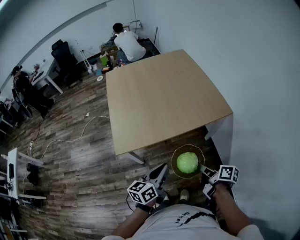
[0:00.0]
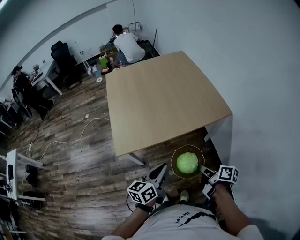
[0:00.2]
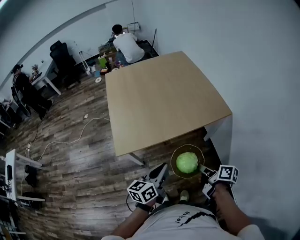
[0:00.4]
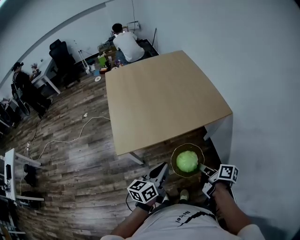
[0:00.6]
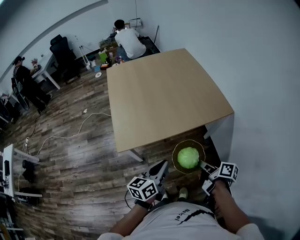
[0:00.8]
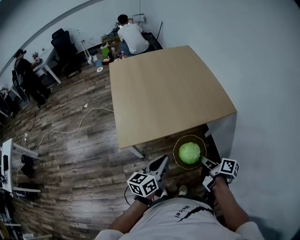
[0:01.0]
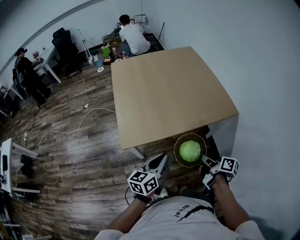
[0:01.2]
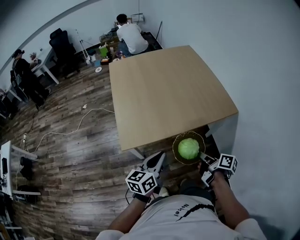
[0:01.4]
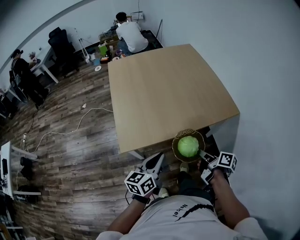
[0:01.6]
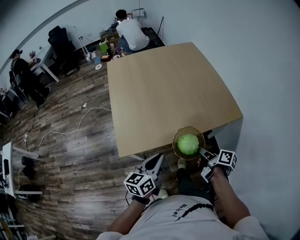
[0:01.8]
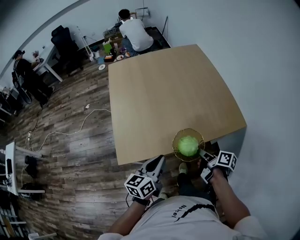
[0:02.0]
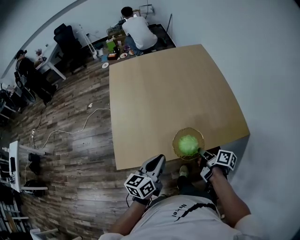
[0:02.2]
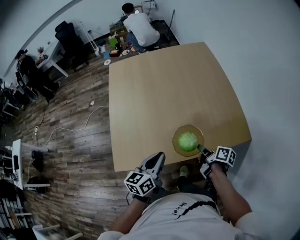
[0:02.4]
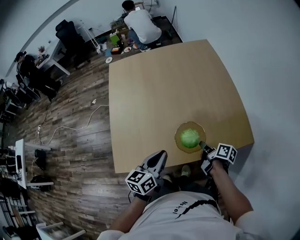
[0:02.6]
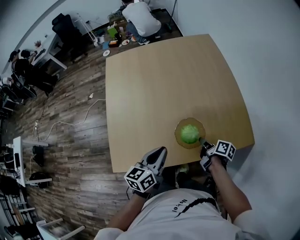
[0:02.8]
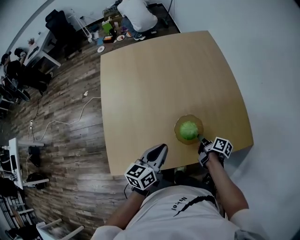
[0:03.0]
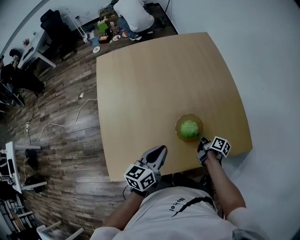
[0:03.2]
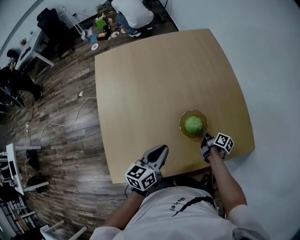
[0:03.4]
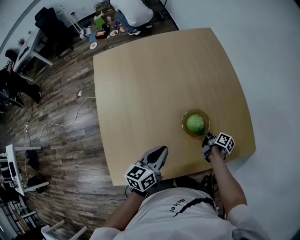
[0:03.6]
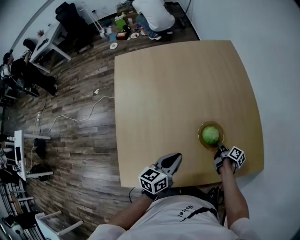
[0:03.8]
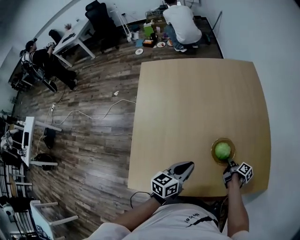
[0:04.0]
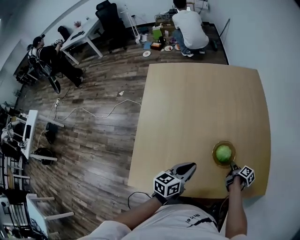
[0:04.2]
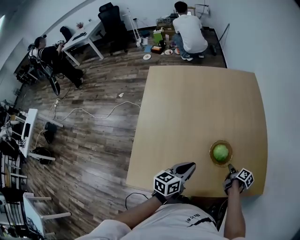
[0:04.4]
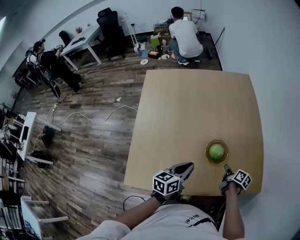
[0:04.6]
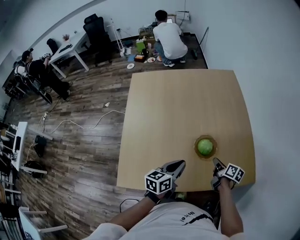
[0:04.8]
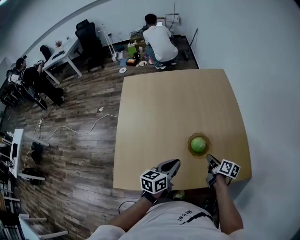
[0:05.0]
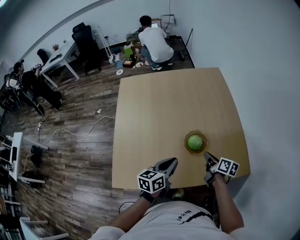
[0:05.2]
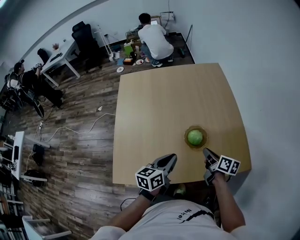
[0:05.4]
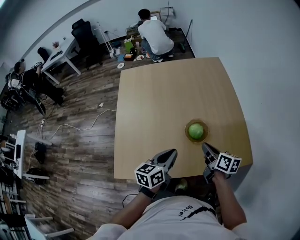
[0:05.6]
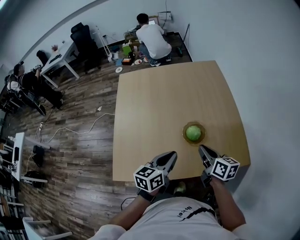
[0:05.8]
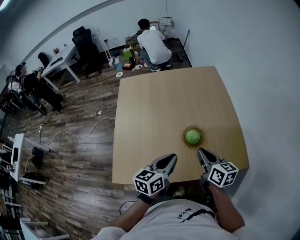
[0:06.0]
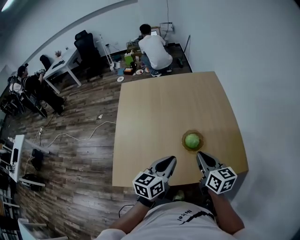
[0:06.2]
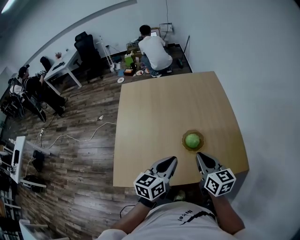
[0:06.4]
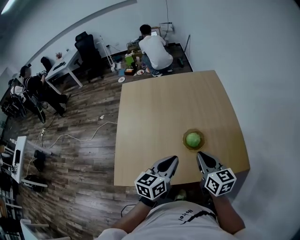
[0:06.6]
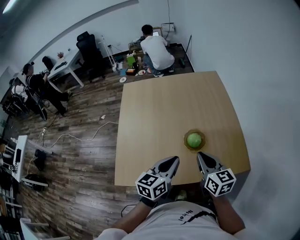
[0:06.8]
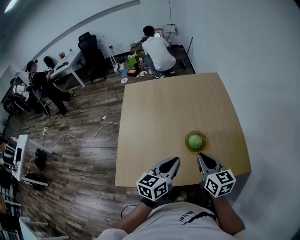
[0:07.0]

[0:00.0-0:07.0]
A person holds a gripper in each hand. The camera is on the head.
0:00.0 to 0:01.4: Both grippers travel together to the left, some 10 cm.
0:01.4 to 0:02.8: Both grippers move forward, roughly 30 cm.
0:02.8 to 0:04.2: The left gripper goes about 10 cm forward, while the right gripper shifts some 15 cm forward, downward and to the right.
0:04.2 to 0:05.6: The left gripper moves backward, upward and to the right, roughly 10 cm. Meanwhile the right gripper travels upward by approximately 25 cm, and swivels some 40 degrees.
0:05.6 to 0:07.0: The left gripper is displaced upward by some 5 cm; the right gripper travels upward by about 10 cm, and swivels roughly 30 degrees.

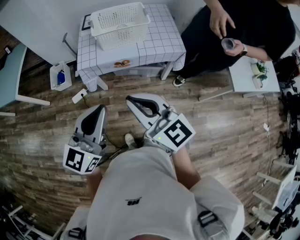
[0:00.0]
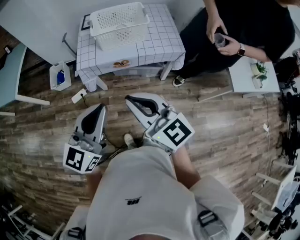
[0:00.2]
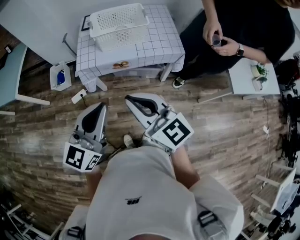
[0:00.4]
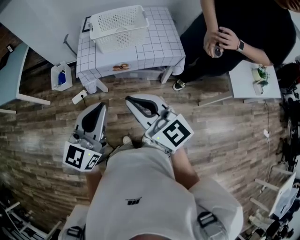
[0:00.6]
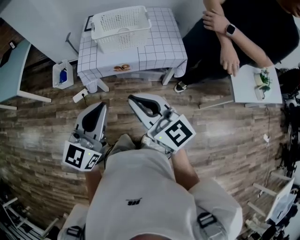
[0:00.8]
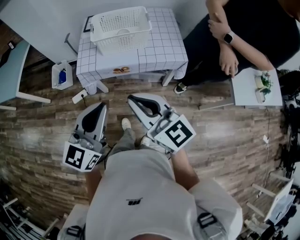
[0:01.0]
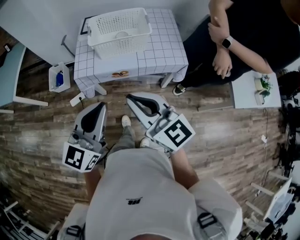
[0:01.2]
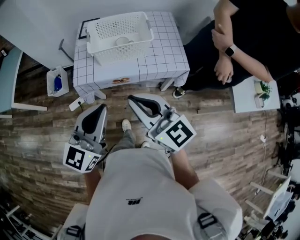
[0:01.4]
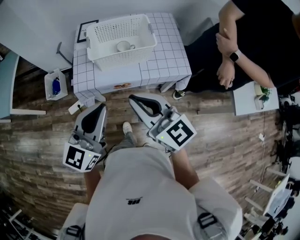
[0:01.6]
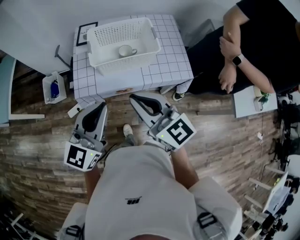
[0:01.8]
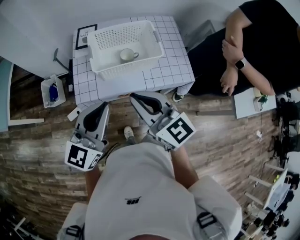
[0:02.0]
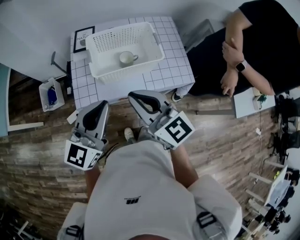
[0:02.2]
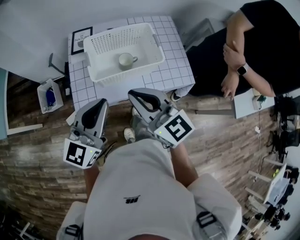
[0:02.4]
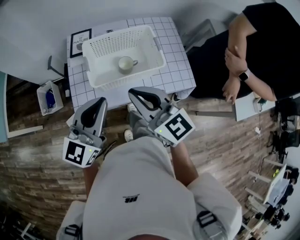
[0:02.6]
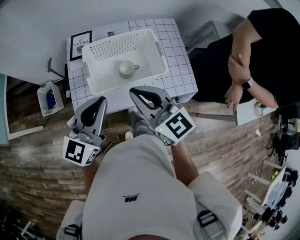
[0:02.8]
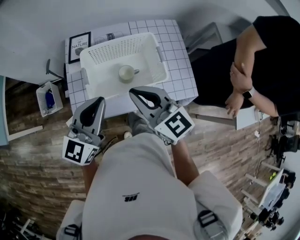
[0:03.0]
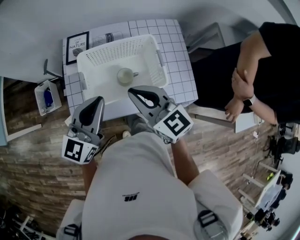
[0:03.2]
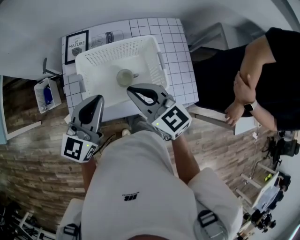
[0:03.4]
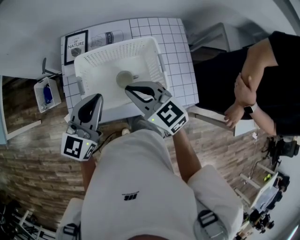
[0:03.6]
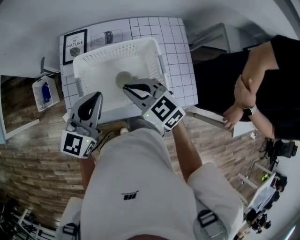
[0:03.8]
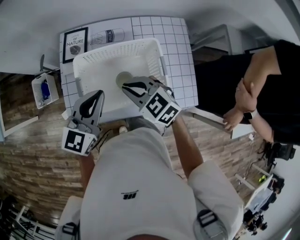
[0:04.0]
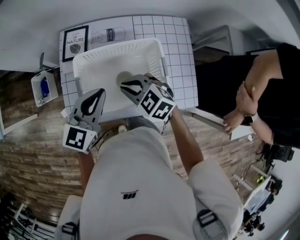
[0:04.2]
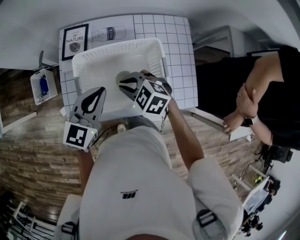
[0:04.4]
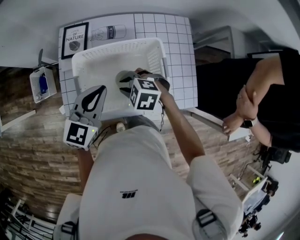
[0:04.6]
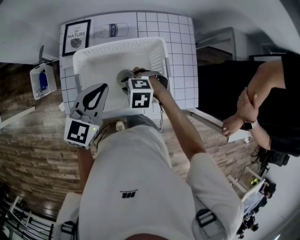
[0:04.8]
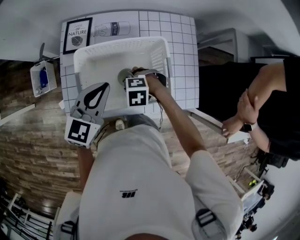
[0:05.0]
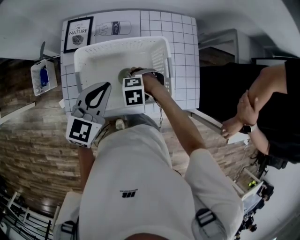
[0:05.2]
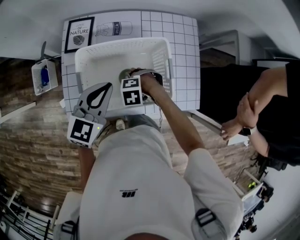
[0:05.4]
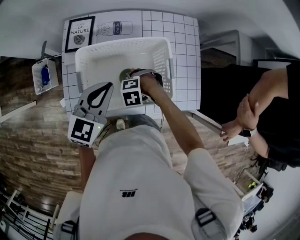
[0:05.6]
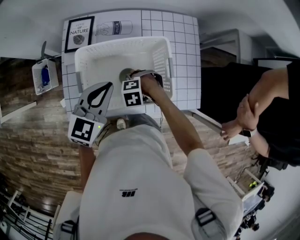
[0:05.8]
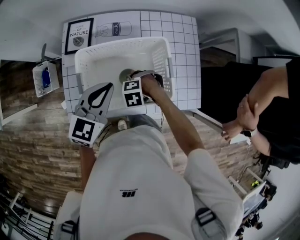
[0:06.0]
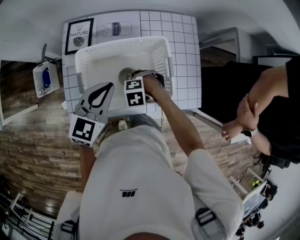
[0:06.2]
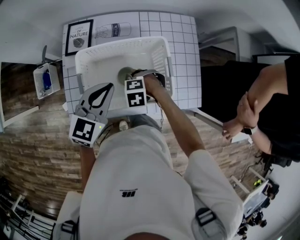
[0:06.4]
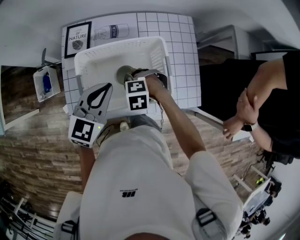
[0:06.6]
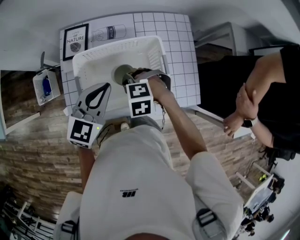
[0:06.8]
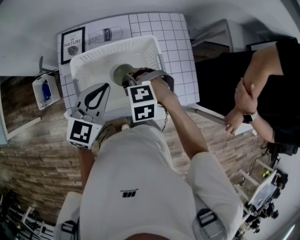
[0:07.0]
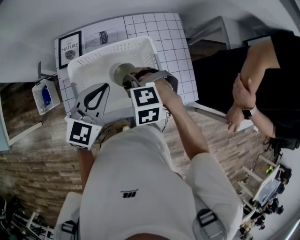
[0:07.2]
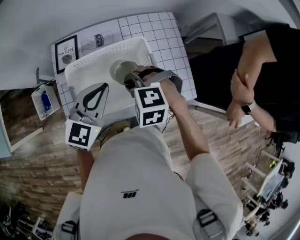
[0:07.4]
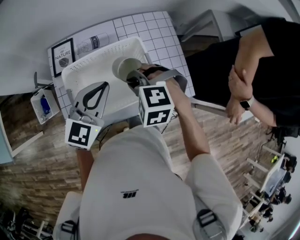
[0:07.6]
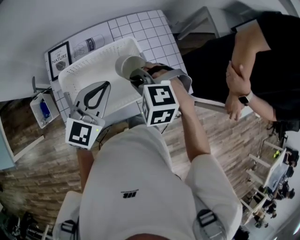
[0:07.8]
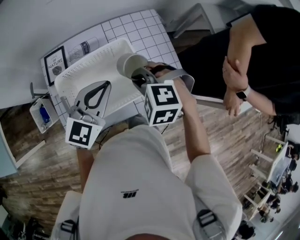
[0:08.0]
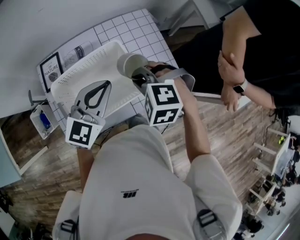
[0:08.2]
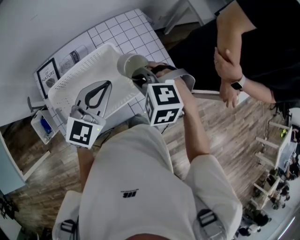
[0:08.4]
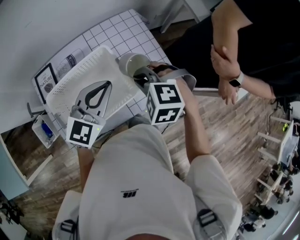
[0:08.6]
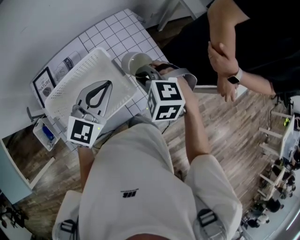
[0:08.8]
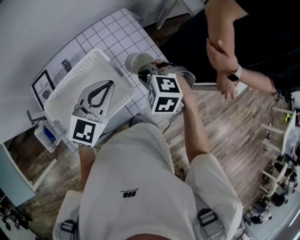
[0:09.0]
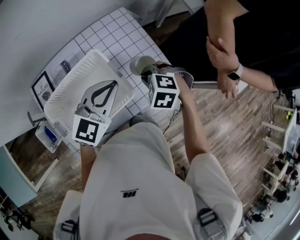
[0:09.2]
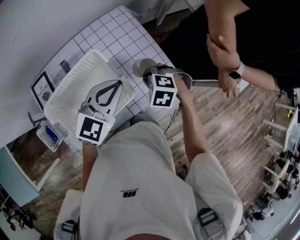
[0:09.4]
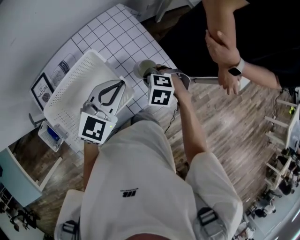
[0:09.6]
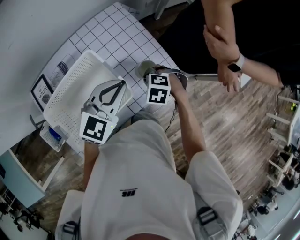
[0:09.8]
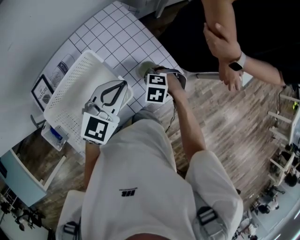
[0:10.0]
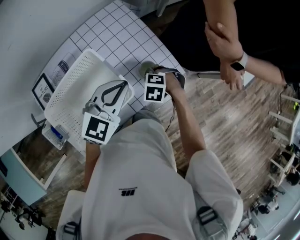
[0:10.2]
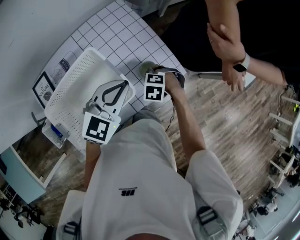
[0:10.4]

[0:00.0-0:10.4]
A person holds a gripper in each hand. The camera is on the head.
0:00.0 to 0:01.4: Both grippers travel together forward, approximately 15 cm.
0:01.4 to 0:03.0: Both grippers travel together forward, roughly 30 cm.
0:03.0 to 0:04.4: The left gripper heads forward and downward, covering approximately 15 cm; the right gripper goes roughly 20 cm downward and forward, and tilts its fingers approximately 40 degrees downward.
0:04.4 to 0:06.0: The right gripper is displaced downward by about 15 cm, and tips its fingers downward by roughly 30 degrees.
0:06.0 to 0:07.4: The left gripper ends up roughly 5 cm from where it was, while the right gripper is displaced upward by some 20 cm, and rotates roughly 30 degrees.
0:07.4 to 0:09.0: Both grippers travel together to the right, approximately 15 cm. The left gripper swivels about 20 degrees. The right gripper turns by about 30 degrees.
0:09.0 to 0:10.4: The left gripper shifts by approximately 5 cm, while the right gripper heads downward, covering some 20 cm, and rotates approximately 20 degrees.

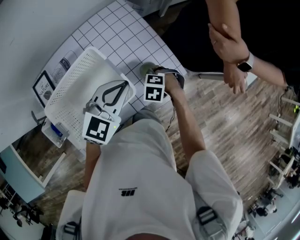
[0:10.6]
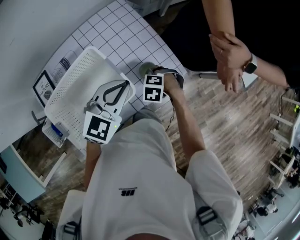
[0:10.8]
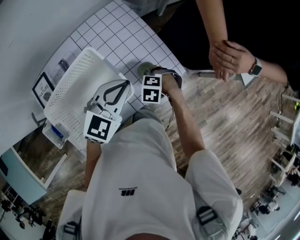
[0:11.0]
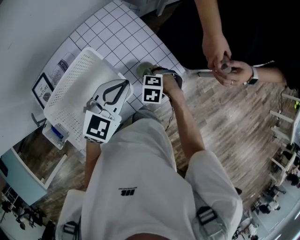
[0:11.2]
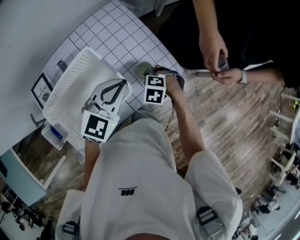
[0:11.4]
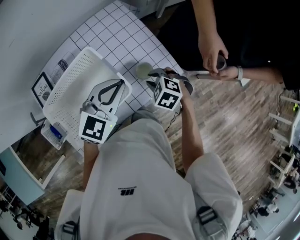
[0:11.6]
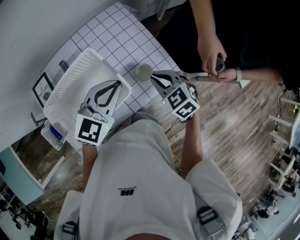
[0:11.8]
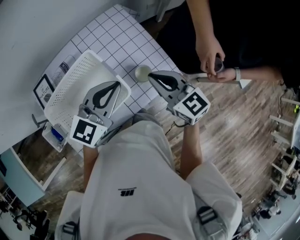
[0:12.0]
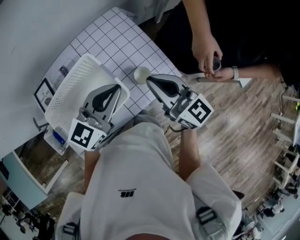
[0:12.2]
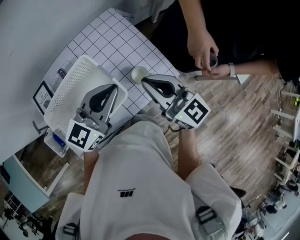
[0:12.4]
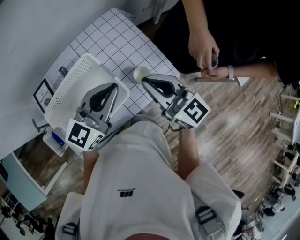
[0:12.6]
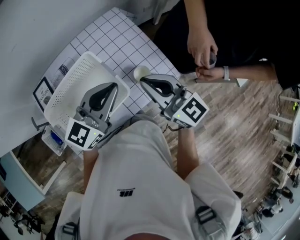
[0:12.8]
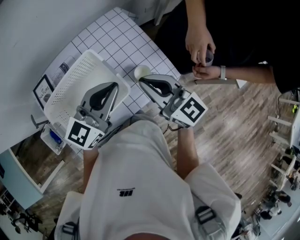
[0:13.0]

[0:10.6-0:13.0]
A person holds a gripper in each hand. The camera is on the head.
0:10.6 to 0:11.8: The right gripper moves upward, roughly 15 cm, and tilts its fingers about 40 degrees upward.
0:11.8 to 0:13.0: The right gripper travels upward by some 15 cm, and tips its fingers upward by about 40 degrees.

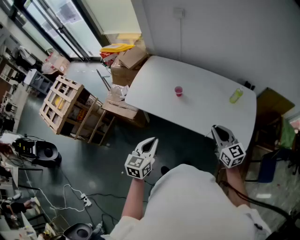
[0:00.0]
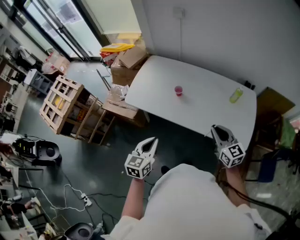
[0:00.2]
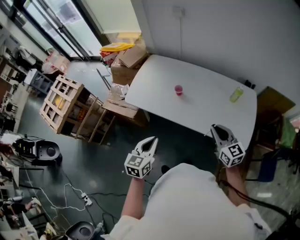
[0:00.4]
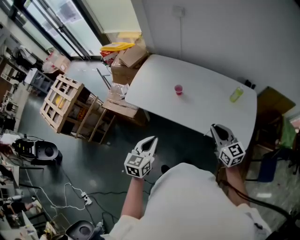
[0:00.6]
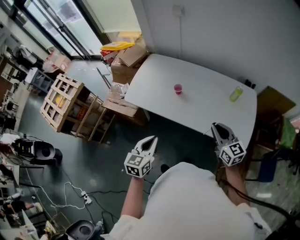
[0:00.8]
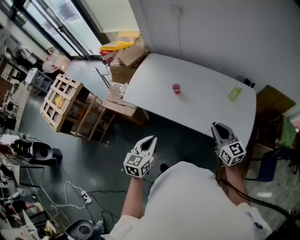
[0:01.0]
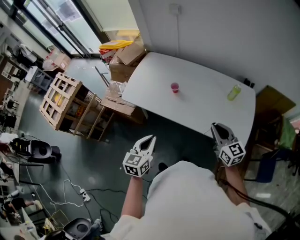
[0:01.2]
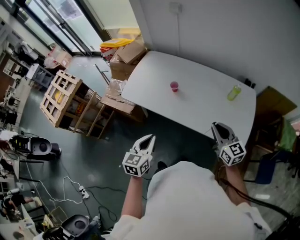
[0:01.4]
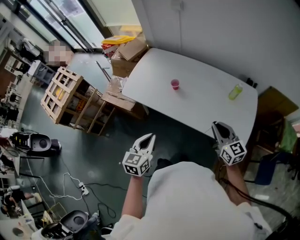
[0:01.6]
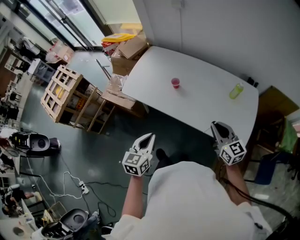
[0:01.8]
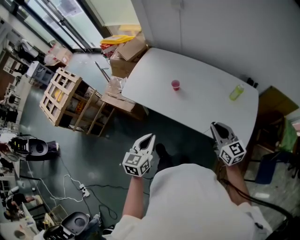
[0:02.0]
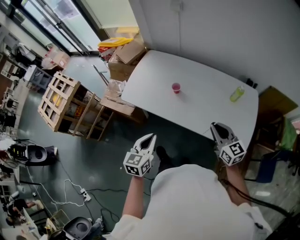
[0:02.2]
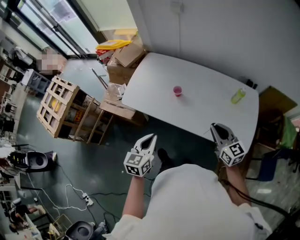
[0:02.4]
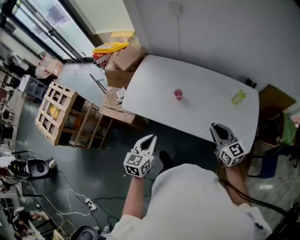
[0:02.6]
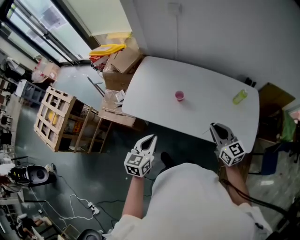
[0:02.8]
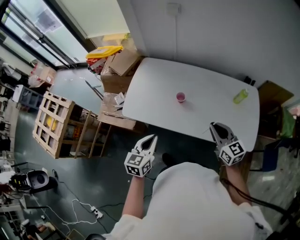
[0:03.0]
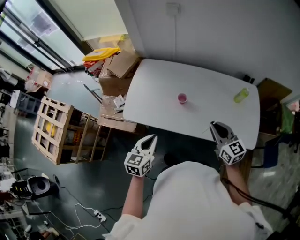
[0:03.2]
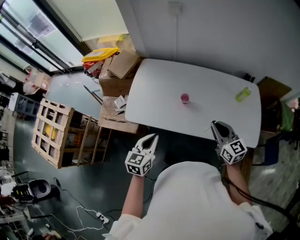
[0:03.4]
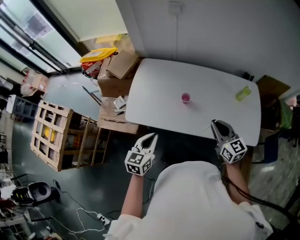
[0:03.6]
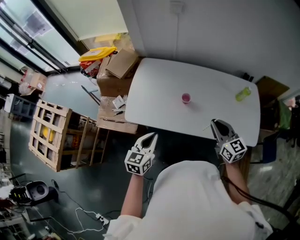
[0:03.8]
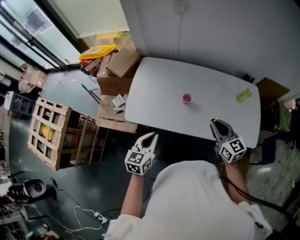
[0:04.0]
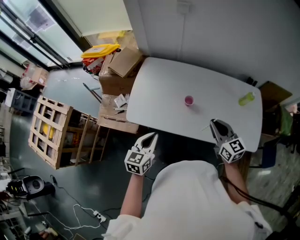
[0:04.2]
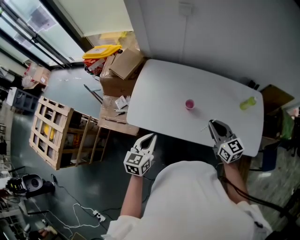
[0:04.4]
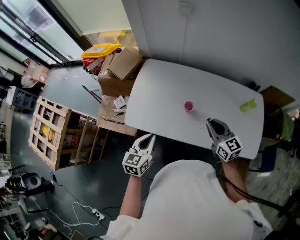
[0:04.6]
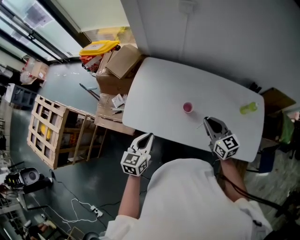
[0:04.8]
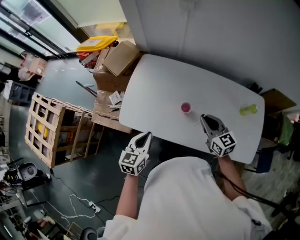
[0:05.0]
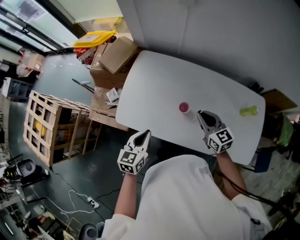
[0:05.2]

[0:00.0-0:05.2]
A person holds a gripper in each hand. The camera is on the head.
0:00.0 to 0:01.8: The grippers stay close to where they were, moving slightly.
0:01.8 to 0:03.4: The right gripper shifts some 20 cm to the left and forward. Meanwhile the left gripper is displaced forward and to the left by some 20 cm.
0:03.4 to 0:05.2: The grippers both shift forward by some 15 cm.
